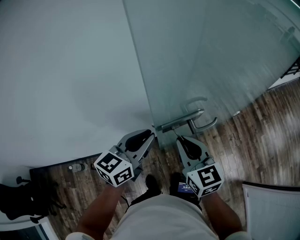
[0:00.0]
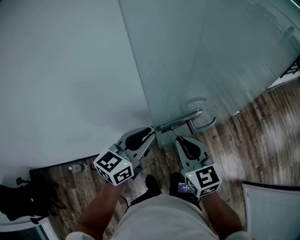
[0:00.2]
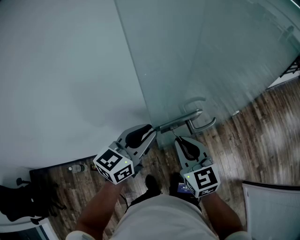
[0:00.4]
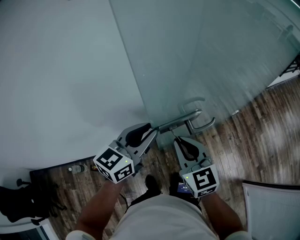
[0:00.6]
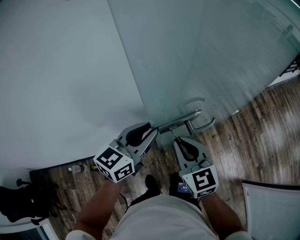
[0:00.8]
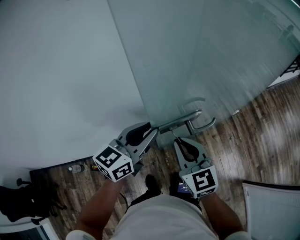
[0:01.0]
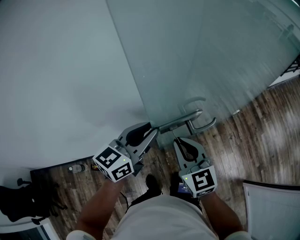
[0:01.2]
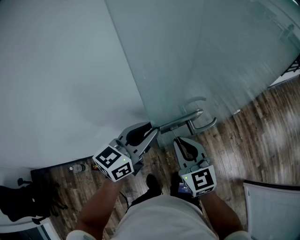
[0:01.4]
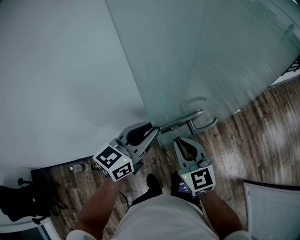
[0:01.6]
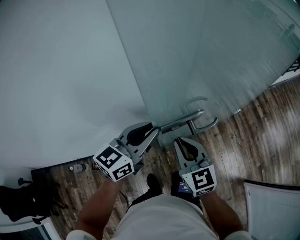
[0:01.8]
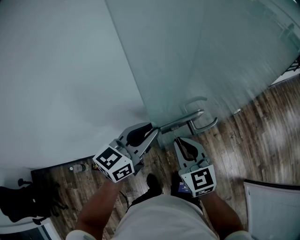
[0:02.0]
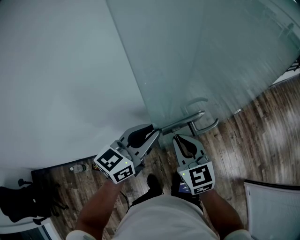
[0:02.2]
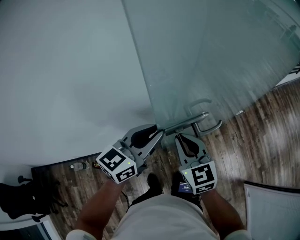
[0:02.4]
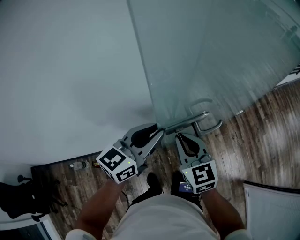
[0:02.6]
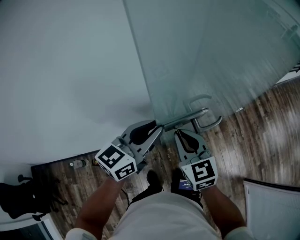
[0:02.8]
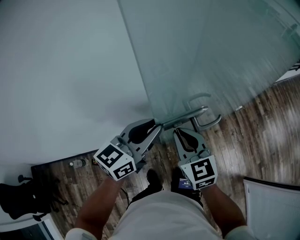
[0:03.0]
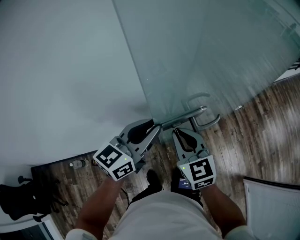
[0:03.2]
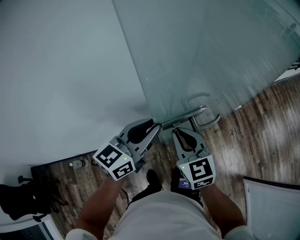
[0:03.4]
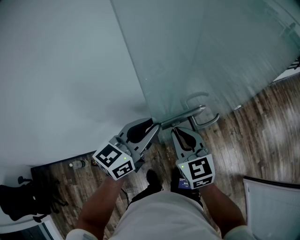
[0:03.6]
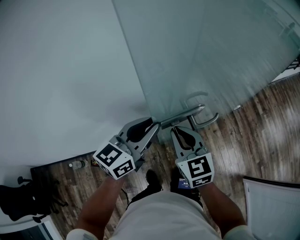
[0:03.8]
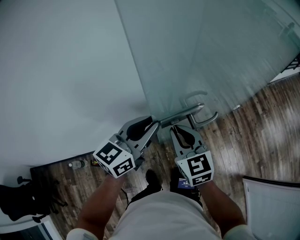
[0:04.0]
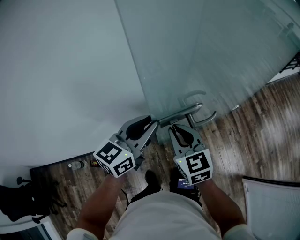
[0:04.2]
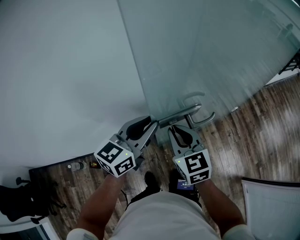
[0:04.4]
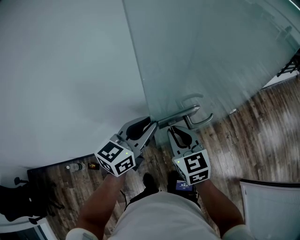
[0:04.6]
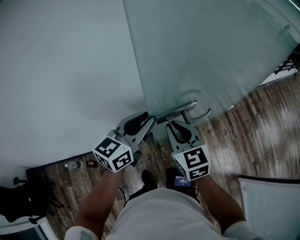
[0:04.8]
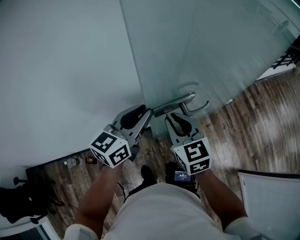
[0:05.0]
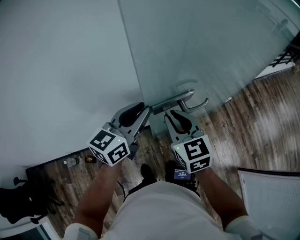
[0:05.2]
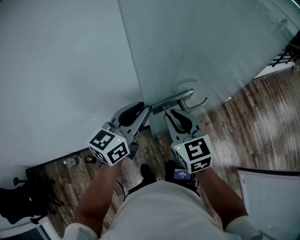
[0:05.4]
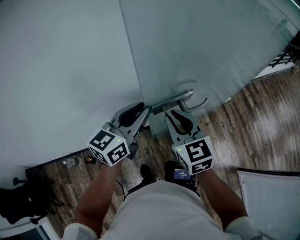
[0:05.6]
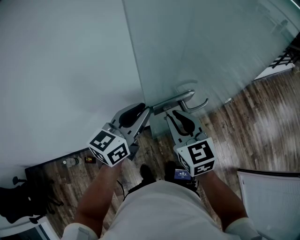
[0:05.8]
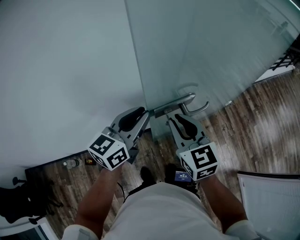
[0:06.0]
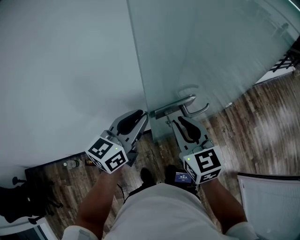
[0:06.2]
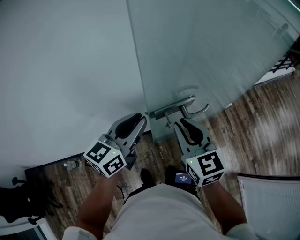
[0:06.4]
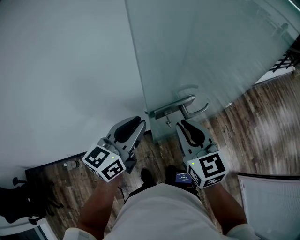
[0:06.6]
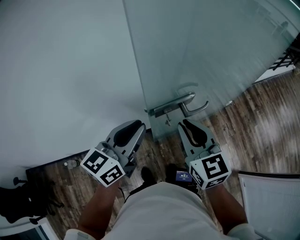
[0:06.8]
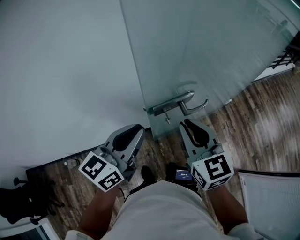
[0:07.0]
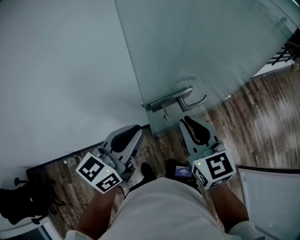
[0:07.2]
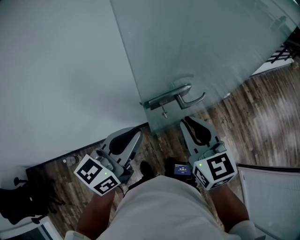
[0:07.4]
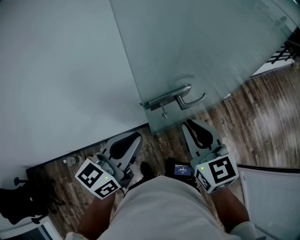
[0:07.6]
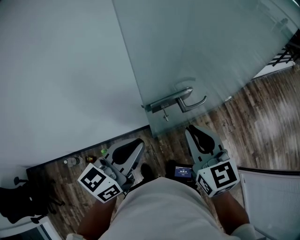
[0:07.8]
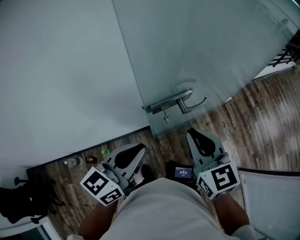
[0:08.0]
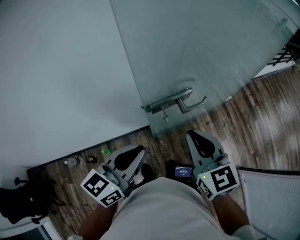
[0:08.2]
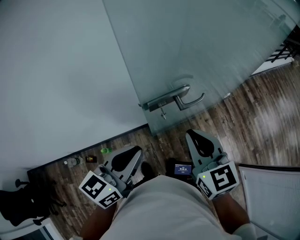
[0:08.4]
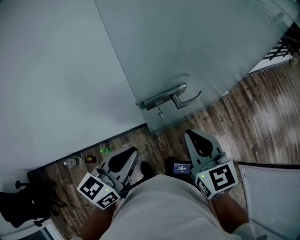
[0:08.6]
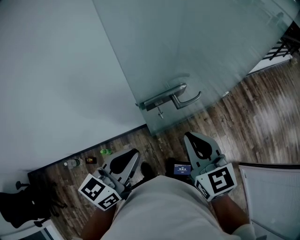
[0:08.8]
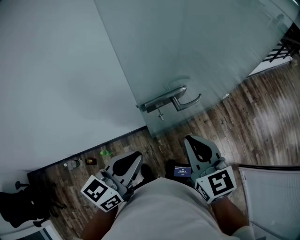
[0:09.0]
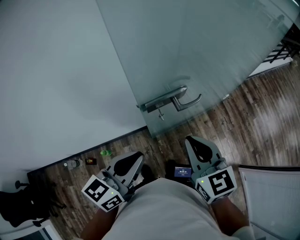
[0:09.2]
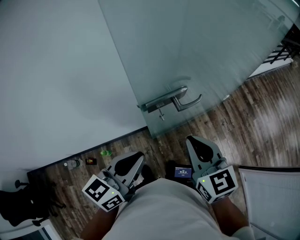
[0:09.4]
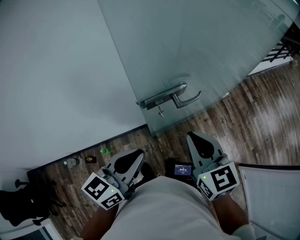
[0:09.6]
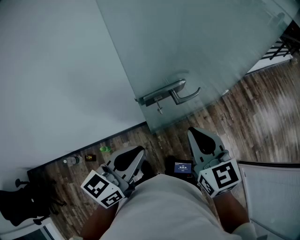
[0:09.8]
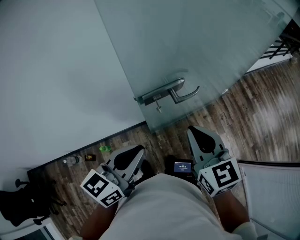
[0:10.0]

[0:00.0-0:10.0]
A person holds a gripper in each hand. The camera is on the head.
0:00.0 to 0:02.8: The grippers make only small movements.
0:02.8 to 0:04.2: Both grippers stay about where they are.
0:04.2 to 0:05.8: The grippers make only small movements.
0:05.8 to 0:07.2: The left gripper heads backward, covering roughly 10 cm. Meanwhile the right gripper moves approximately 5 cm.
0:07.2 to 0:08.6: The left gripper moves backward, about 5 cm.
0:08.6 to 0:10.0: The grippers move only a little.

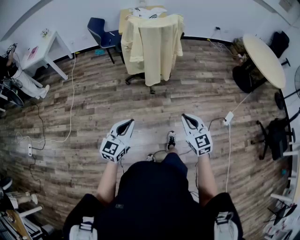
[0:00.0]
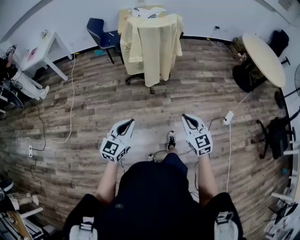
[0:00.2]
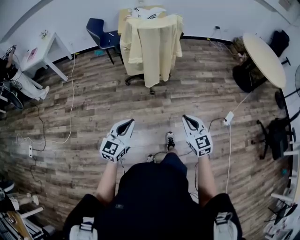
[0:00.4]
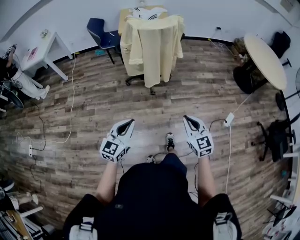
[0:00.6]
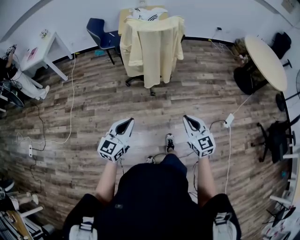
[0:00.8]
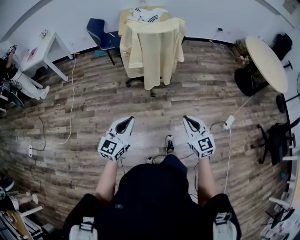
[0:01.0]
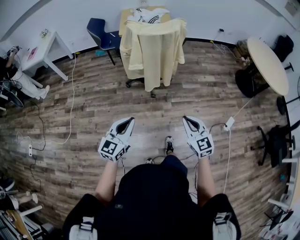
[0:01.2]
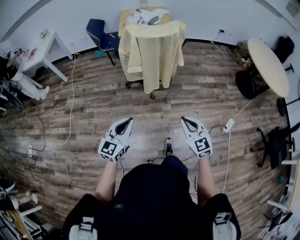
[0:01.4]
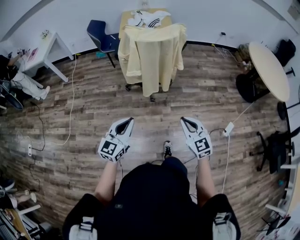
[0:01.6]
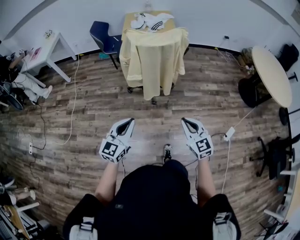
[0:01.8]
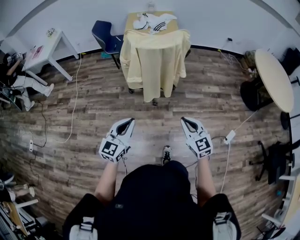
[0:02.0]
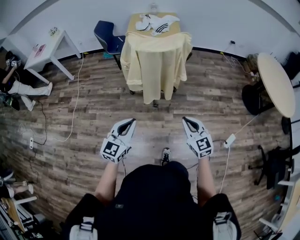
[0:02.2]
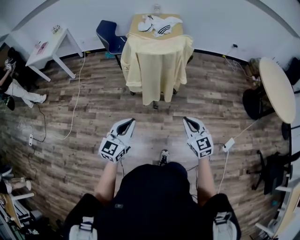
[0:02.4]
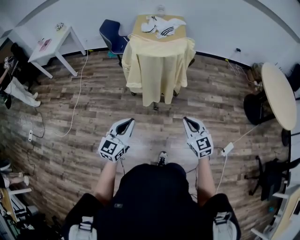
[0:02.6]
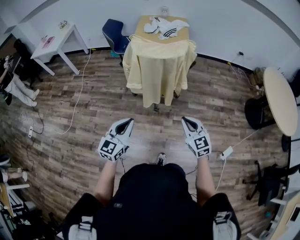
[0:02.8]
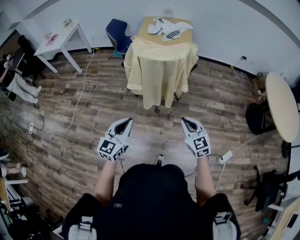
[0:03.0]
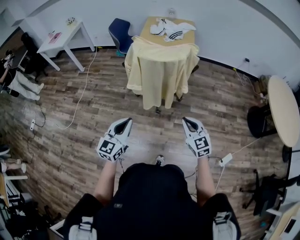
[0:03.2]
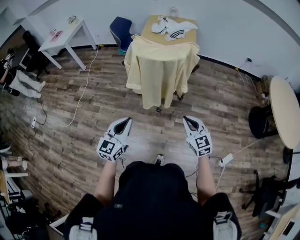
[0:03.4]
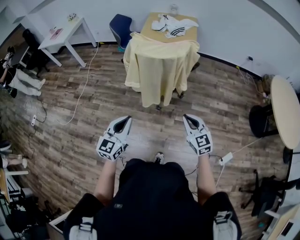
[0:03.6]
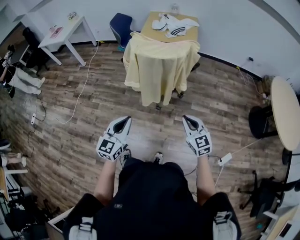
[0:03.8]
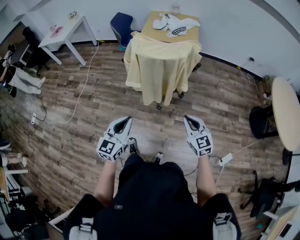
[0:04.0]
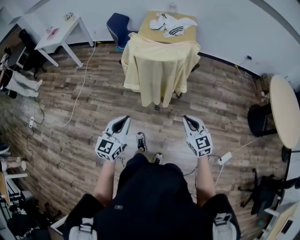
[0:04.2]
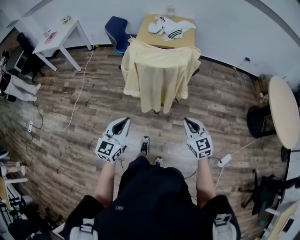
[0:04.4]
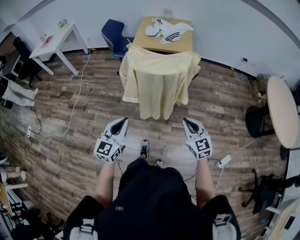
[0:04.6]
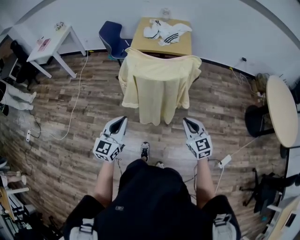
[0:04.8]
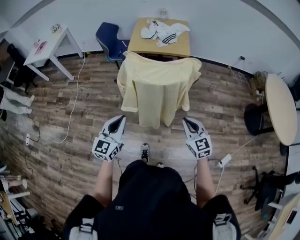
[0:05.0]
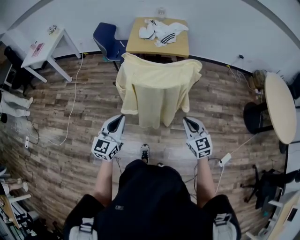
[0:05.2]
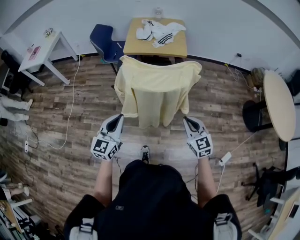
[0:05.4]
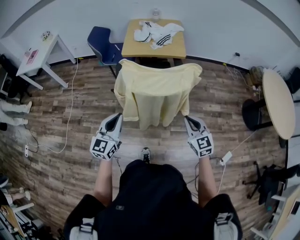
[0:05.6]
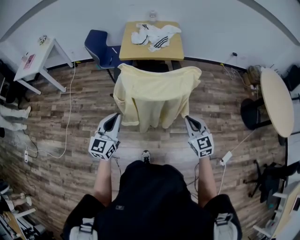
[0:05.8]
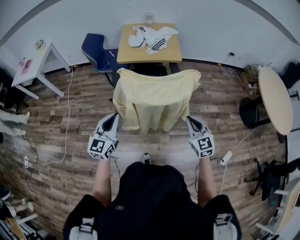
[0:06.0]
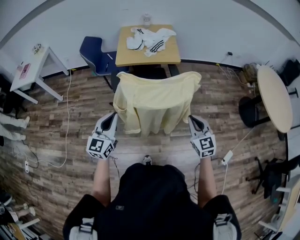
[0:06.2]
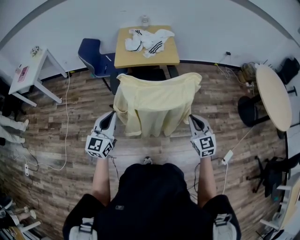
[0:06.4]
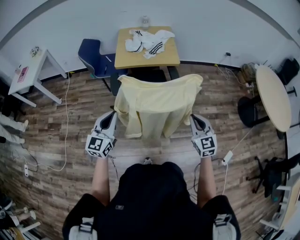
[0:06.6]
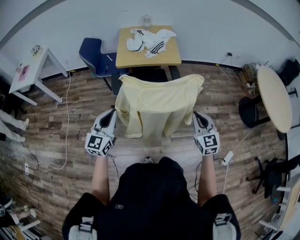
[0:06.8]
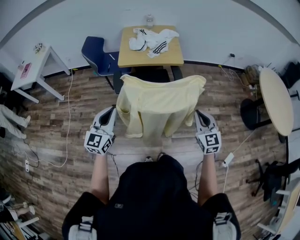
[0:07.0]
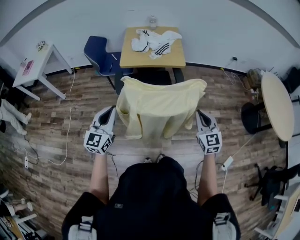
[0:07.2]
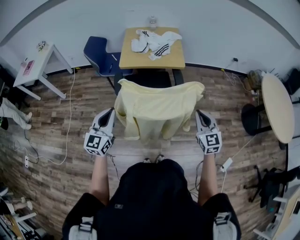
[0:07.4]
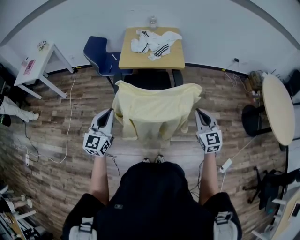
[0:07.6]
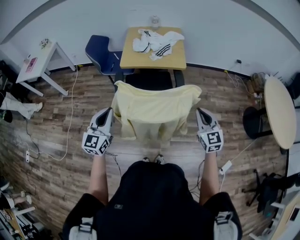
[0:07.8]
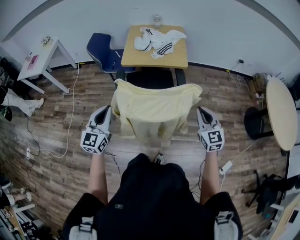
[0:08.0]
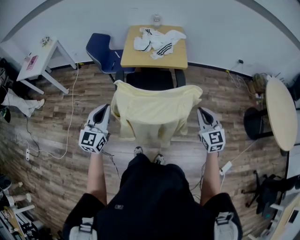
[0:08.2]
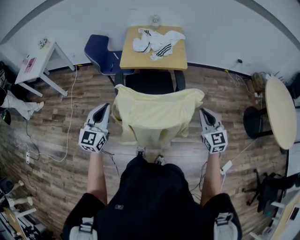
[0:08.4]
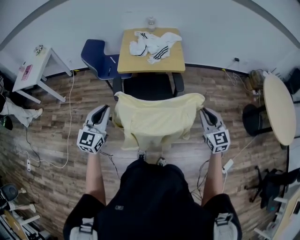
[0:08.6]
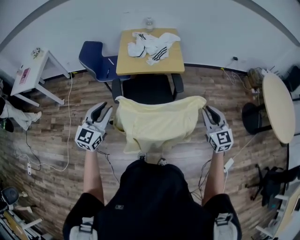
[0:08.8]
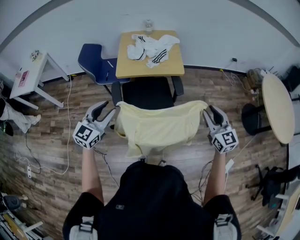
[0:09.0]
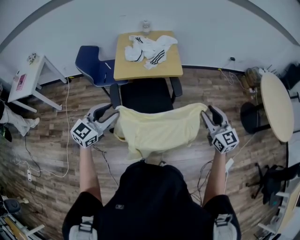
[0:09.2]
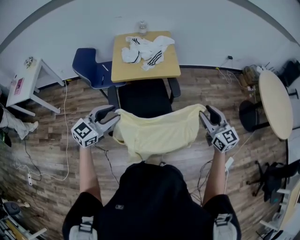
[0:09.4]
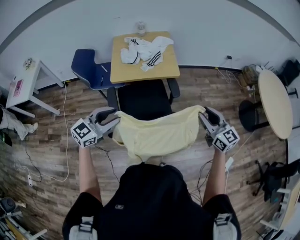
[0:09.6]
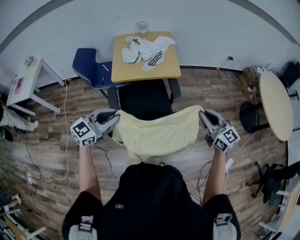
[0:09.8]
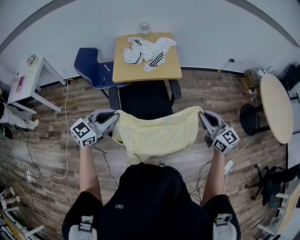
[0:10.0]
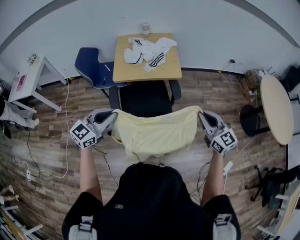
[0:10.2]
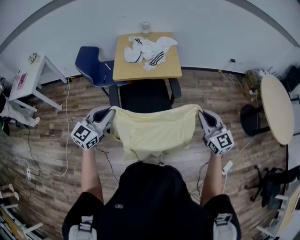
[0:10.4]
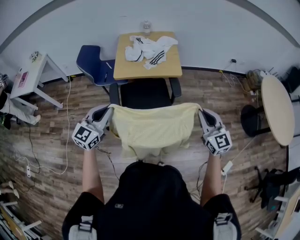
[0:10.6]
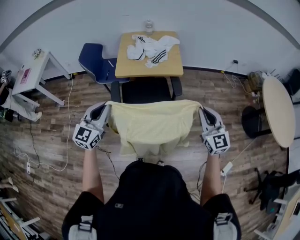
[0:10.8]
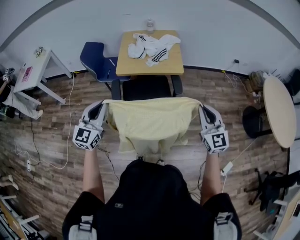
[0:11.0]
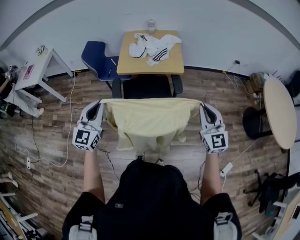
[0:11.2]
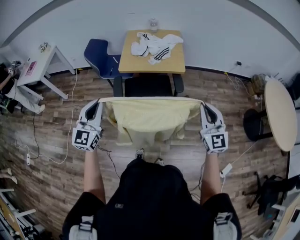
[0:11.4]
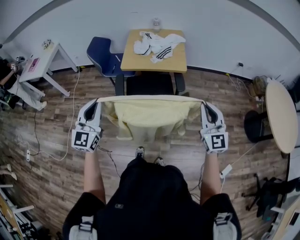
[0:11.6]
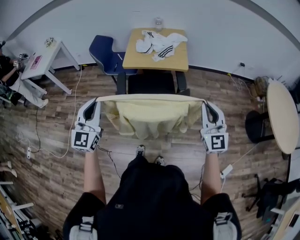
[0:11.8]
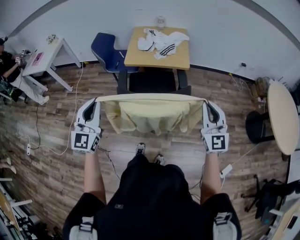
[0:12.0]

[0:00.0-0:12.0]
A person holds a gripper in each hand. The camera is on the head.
0:00.0 to 0:01.6: The grippers both shift forward by roughly 10 cm.
0:01.6 to 0:03.0: The left gripper is displaced forward and to the right by roughly 10 cm; the right gripper goes approximately 15 cm forward and to the right.
0:03.0 to 0:04.4: The grippers both shift forward by approximately 5 cm.
0:04.4 to 0:06.0: The grippers both shift forward by about 20 cm.
0:06.0 to 0:07.6: The two grippers go roughly 10 cm forward.
0:07.6 to 0:09.0: The left gripper travels forward by roughly 10 cm, rotates about 20 degrees, and opens up; the right gripper heads forward, covering approximately 5 cm, and opens.
0:09.0 to 0:10.4: The left gripper closes up, while the right gripper closes its fingers.
0:10.4 to 0:12.0: The right gripper heads backward, covering about 10 cm, while the left gripper shifts about 15 cm backward and upward, and swivels about 40 degrees.

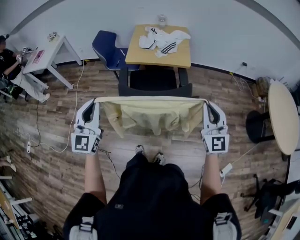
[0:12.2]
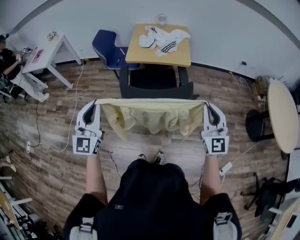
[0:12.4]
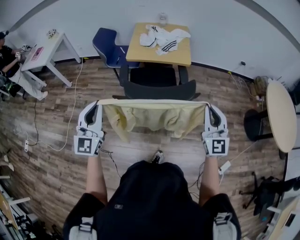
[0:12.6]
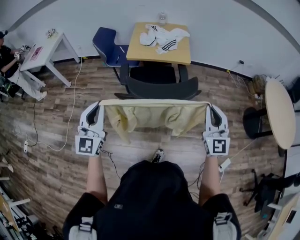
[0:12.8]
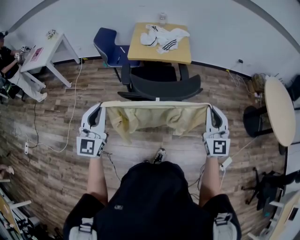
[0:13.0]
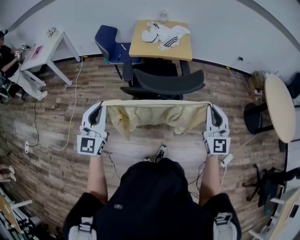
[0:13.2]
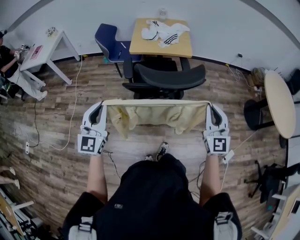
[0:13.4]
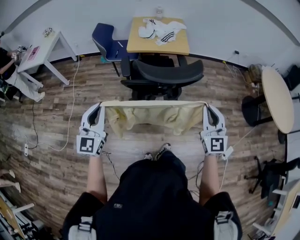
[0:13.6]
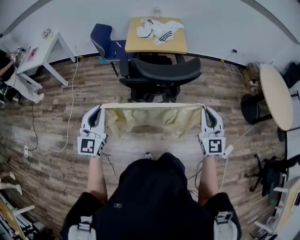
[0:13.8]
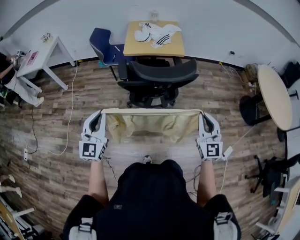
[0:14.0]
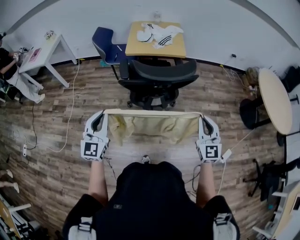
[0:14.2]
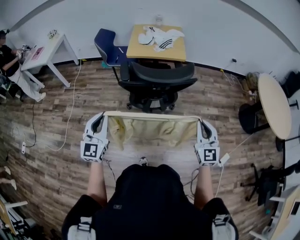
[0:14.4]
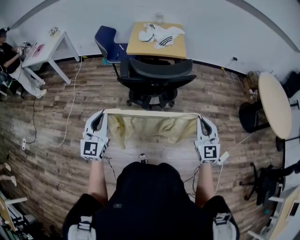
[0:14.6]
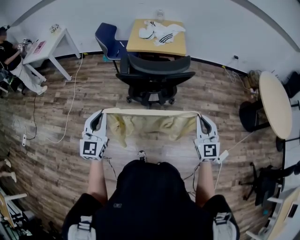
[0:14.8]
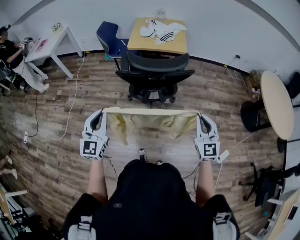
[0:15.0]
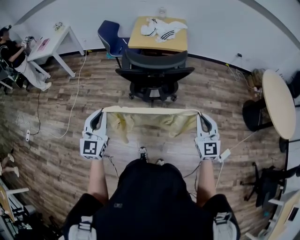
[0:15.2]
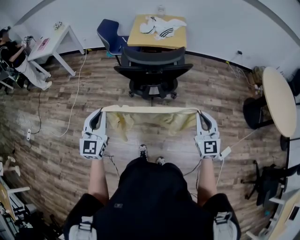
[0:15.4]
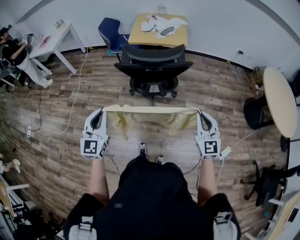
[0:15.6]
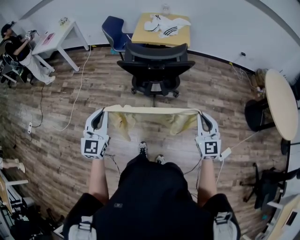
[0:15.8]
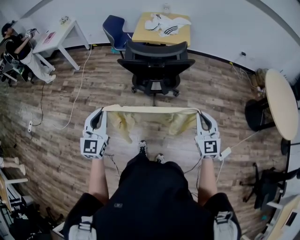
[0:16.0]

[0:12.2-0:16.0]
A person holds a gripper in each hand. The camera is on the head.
0:12.2 to 0:13.4: The grippers both shift backward and to the left by roughly 15 cm.
0:13.4 to 0:14.8: The left gripper is displaced backward and to the right by about 10 cm; the right gripper heads backward, to the right and downward, covering about 10 cm.
0:14.8 to 0:16.0: The right gripper travels backward by roughly 5 cm. Meanwhile the left gripper travels backward by roughly 10 cm.
